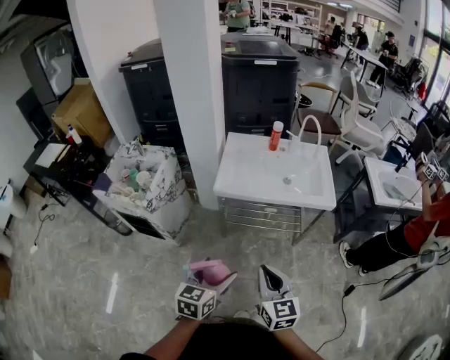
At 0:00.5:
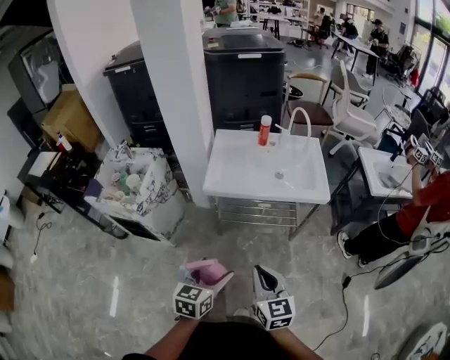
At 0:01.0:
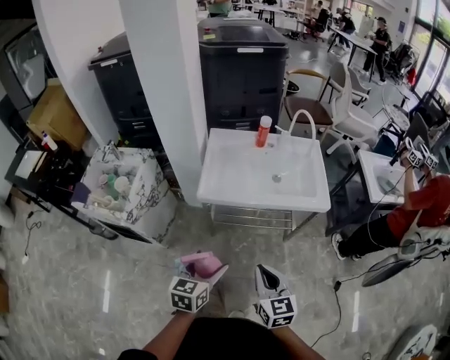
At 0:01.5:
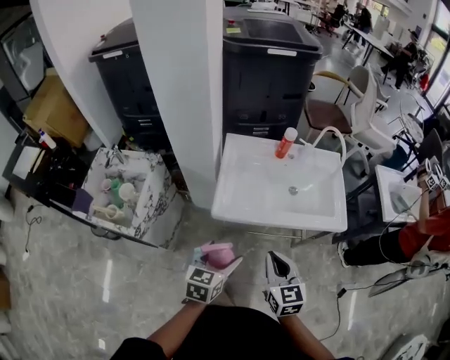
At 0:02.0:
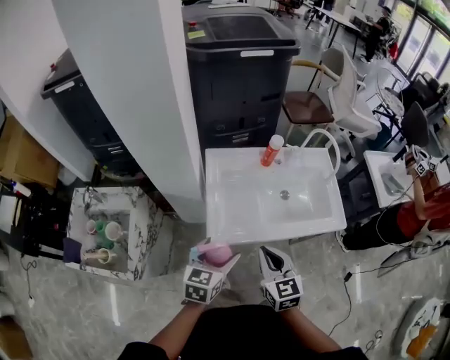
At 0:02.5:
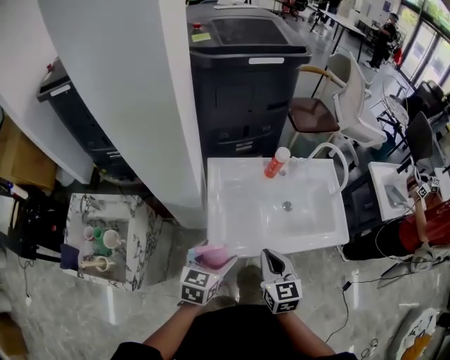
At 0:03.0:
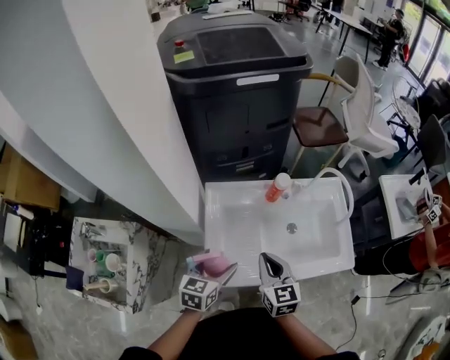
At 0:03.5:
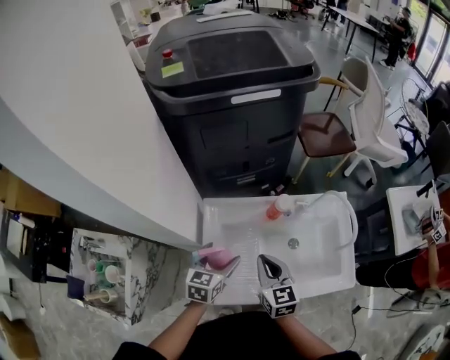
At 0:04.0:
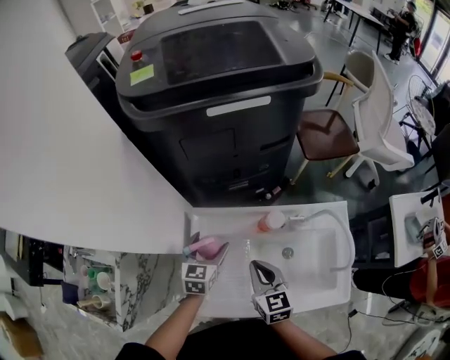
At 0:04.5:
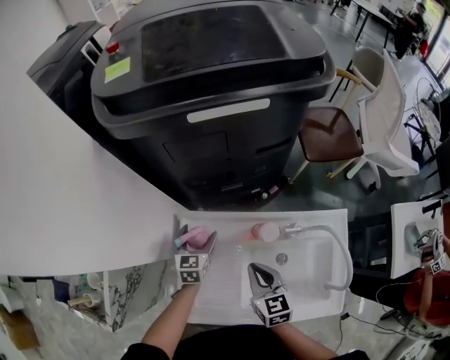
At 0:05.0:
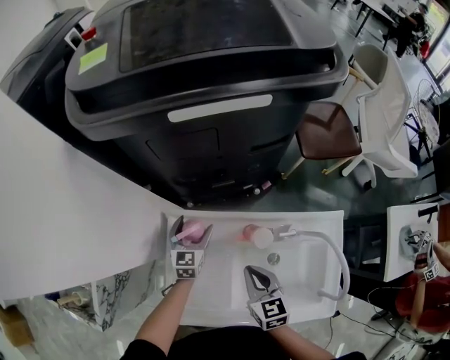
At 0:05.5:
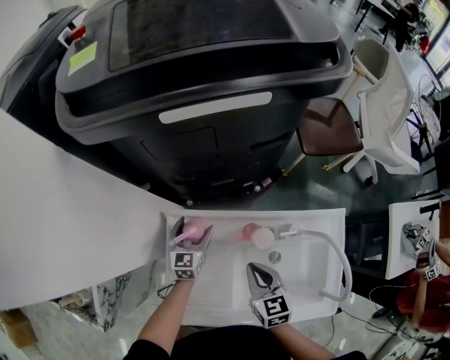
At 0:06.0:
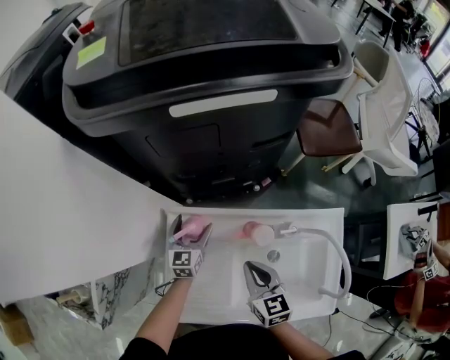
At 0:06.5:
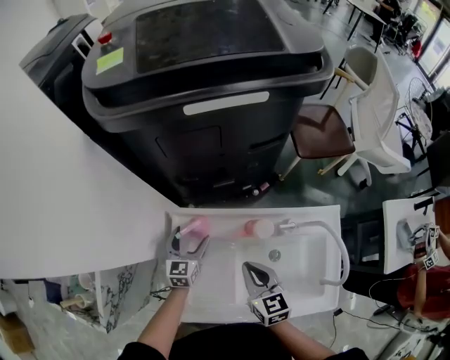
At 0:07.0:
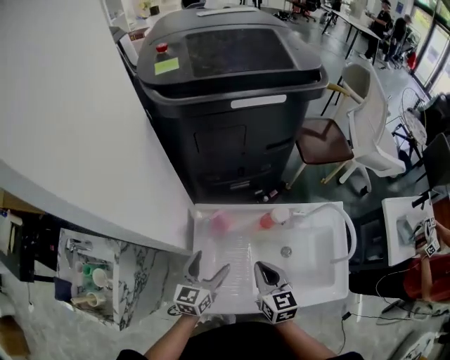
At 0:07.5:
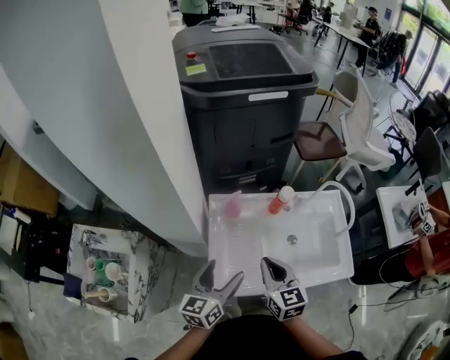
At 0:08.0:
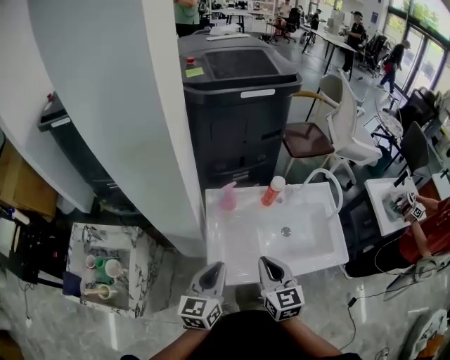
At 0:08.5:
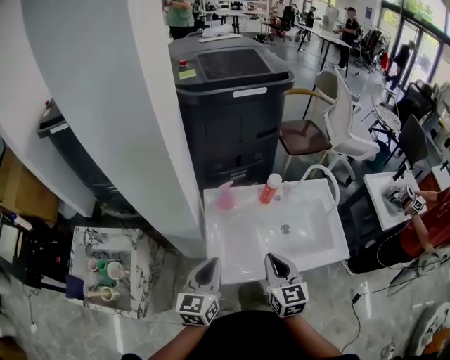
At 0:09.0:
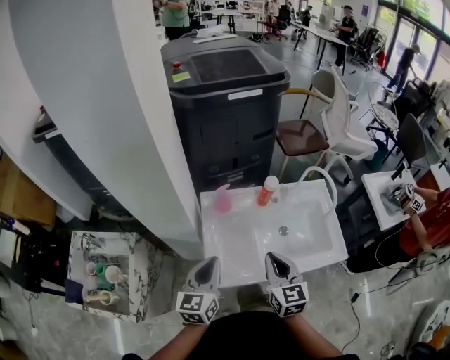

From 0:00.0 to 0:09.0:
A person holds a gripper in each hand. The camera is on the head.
From 0:00.0 to 0:02.0: The two grippers travel together, forward, approximately 40 cm.
From 0:02.0 to 0:04.5: Both grippers travel together forward, about 40 cm. The left gripper rotates roughly 20 degrees.
From 0:04.5 to 0:07.0: The left gripper moves backward and upward, some 20 cm, and rotates some 20 degrees, while the right gripper is displaced backward by approximately 5 cm.
From 0:07.0 to 0:09.0: The two grippers go about 20 cm backward and upward. The left gripper closes its fingers.

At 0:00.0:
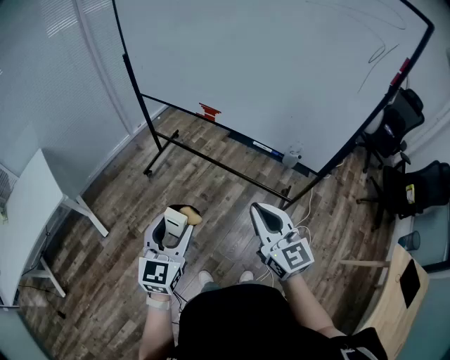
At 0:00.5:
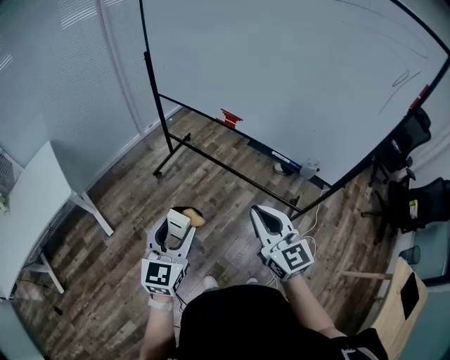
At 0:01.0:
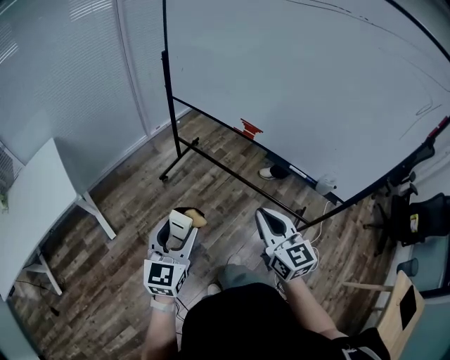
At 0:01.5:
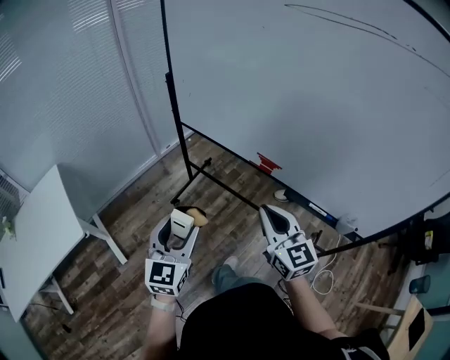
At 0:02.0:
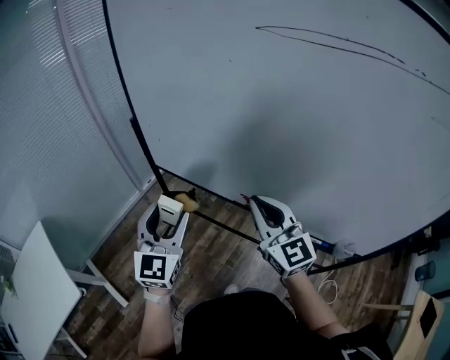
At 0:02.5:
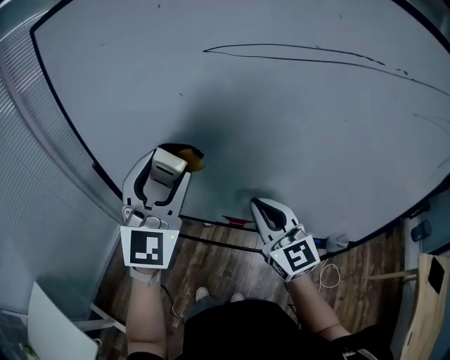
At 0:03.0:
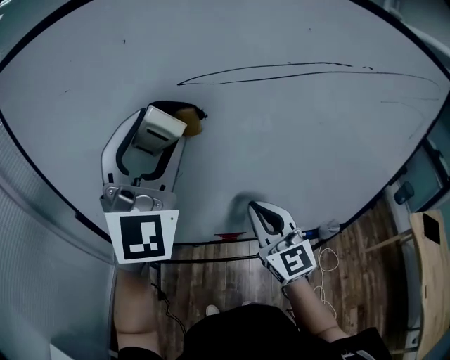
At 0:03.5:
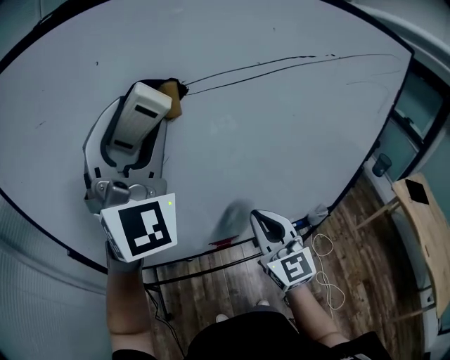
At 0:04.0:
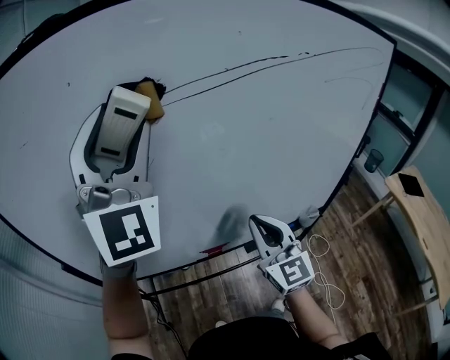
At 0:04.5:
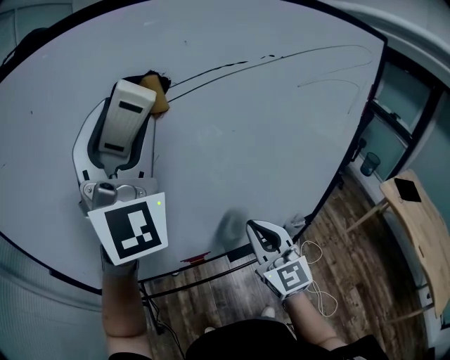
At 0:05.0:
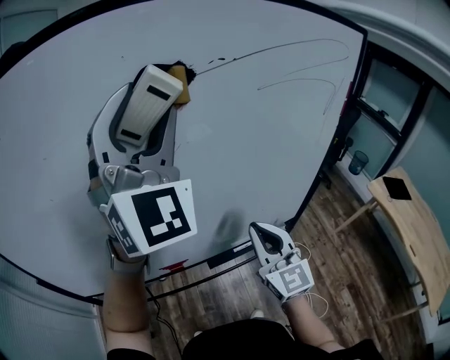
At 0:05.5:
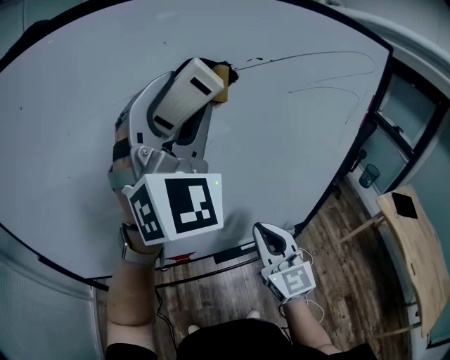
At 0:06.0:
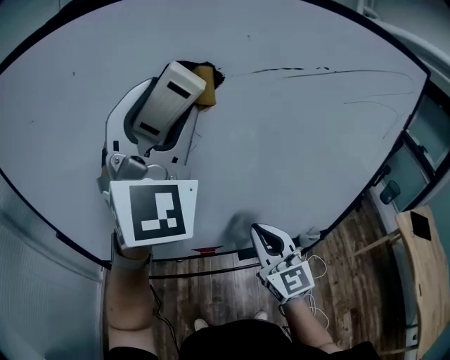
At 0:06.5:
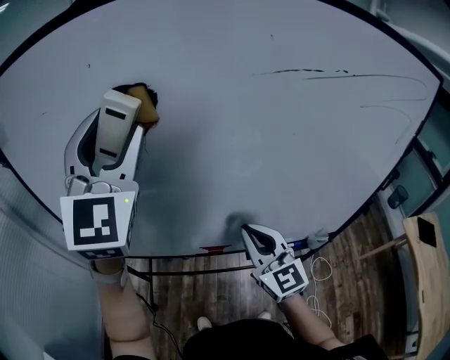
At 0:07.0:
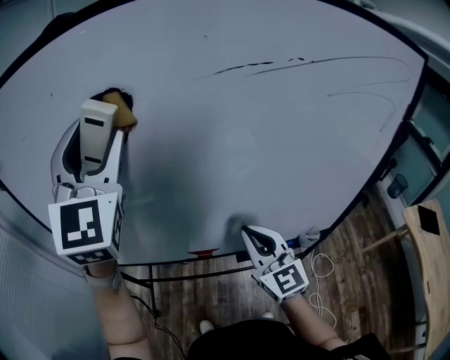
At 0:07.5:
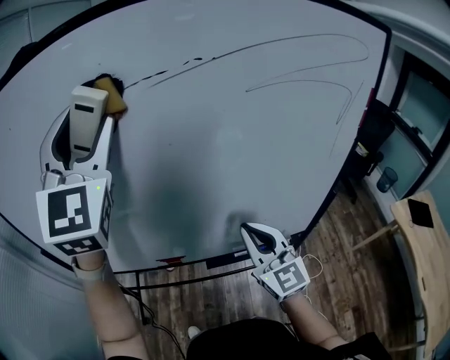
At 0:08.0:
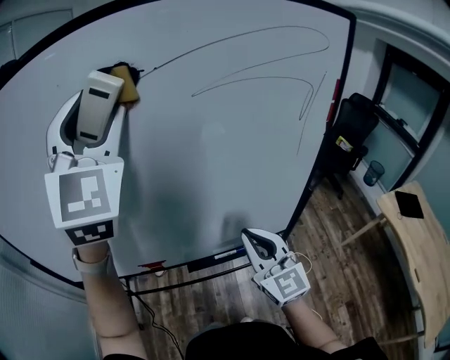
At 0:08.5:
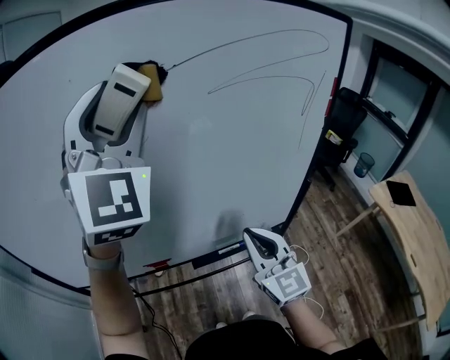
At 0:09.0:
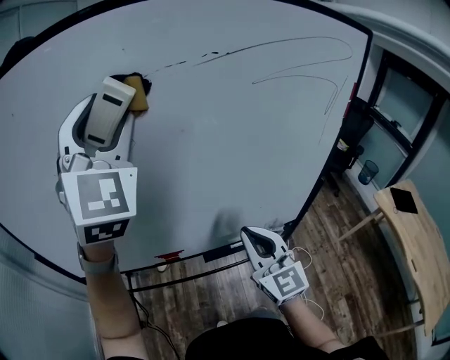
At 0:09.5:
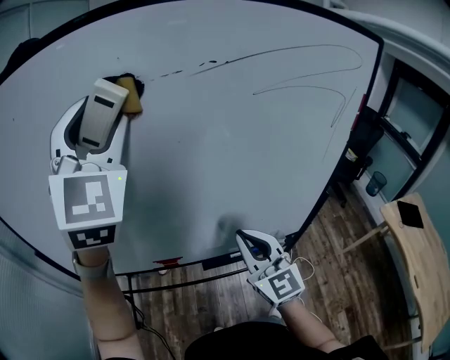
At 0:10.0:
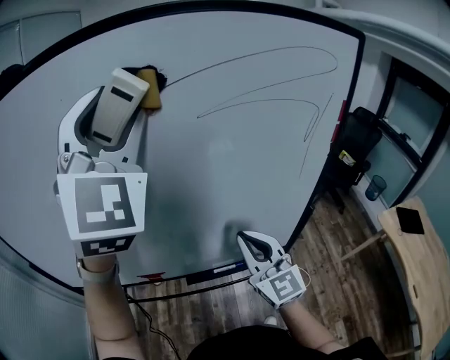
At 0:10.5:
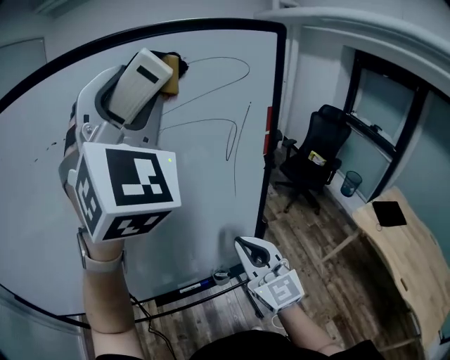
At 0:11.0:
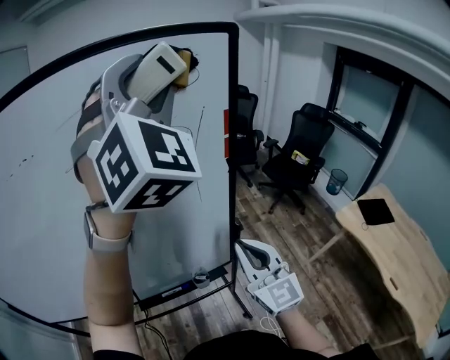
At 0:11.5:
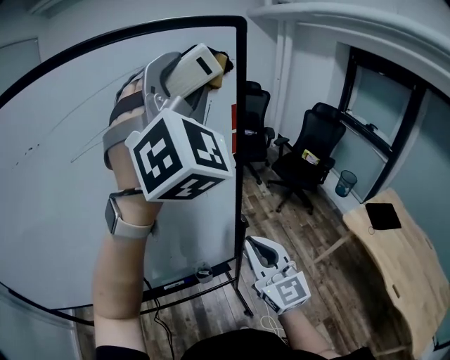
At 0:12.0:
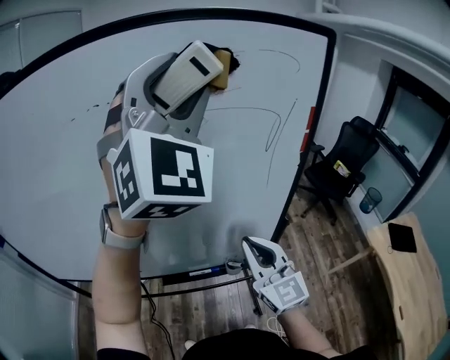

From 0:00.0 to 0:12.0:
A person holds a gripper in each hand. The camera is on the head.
From 0:00.0 to 0:02.0: Both grippers are carried forward, about 50 cm.
From 0:02.0 to 0:04.0: The left gripper heads upward, covering approximately 35 cm, and turns by approximately 50 degrees; the right gripper shifts by about 10 cm, and rotates about 50 degrees.
From 0:04.0 to 0:06.0: The left gripper is displaced to the right by roughly 5 cm; the right gripper goes to the right and returns, roughly 15 cm each way.
From 0:06.0 to 0:08.0: Both grippers travel together to the right, about 20 cm.
From 0:08.0 to 0:10.0: The left gripper goes to the left and returns, about 10 cm each way. The right gripper moves approximately 10 cm to the left and comes back.
From 0:10.0 to 0:12.0: The right gripper moves to the right, approximately 10 cm; the left gripper shifts some 20 cm to the right.

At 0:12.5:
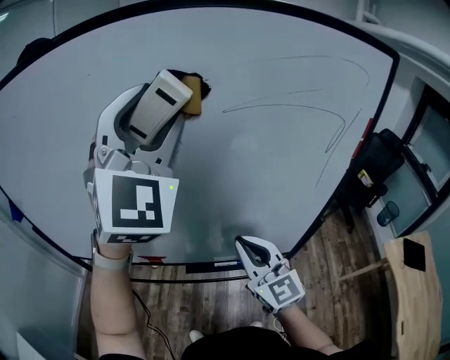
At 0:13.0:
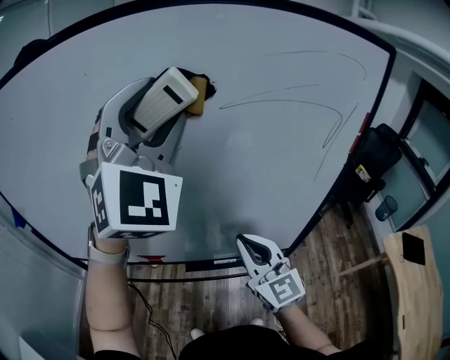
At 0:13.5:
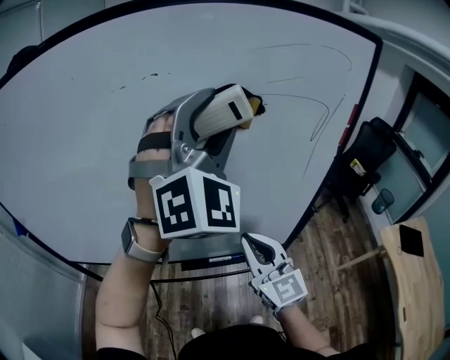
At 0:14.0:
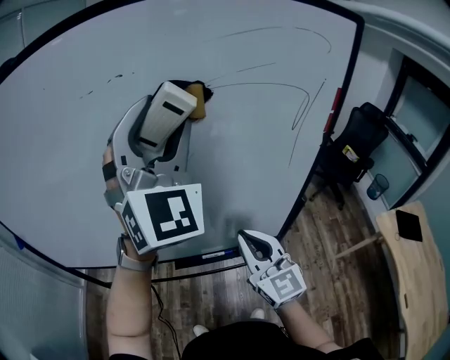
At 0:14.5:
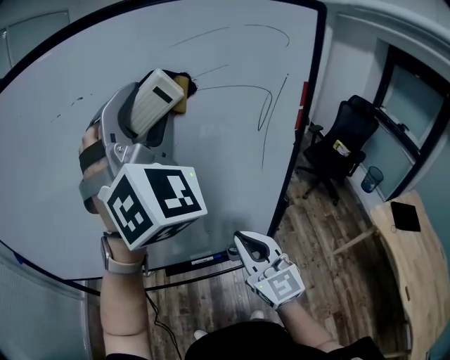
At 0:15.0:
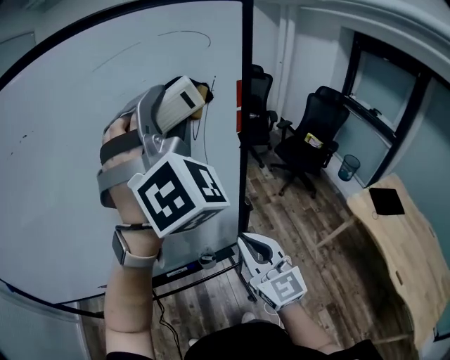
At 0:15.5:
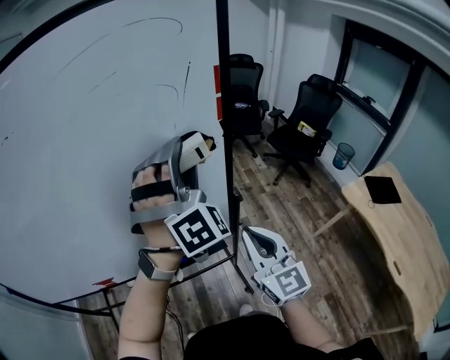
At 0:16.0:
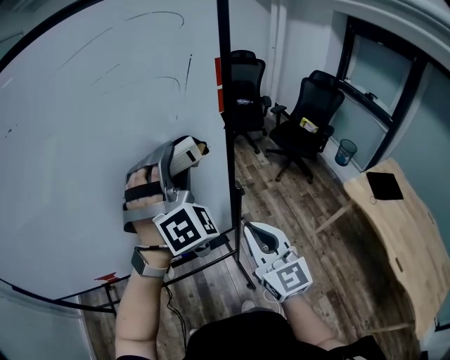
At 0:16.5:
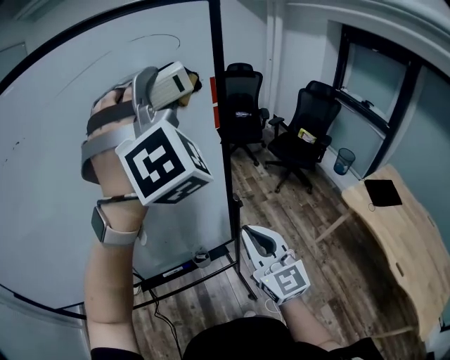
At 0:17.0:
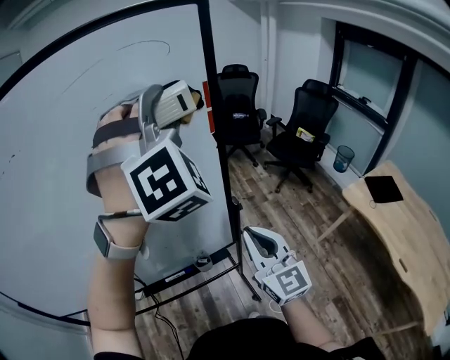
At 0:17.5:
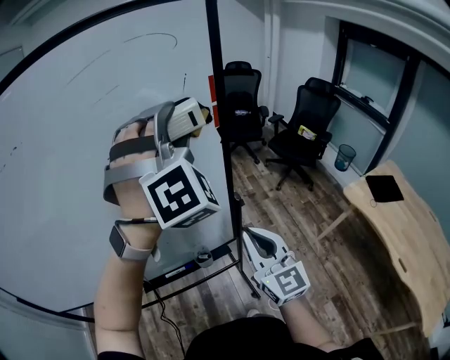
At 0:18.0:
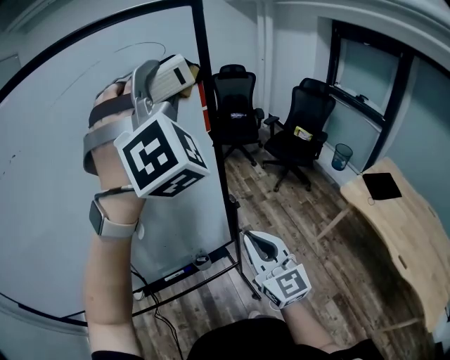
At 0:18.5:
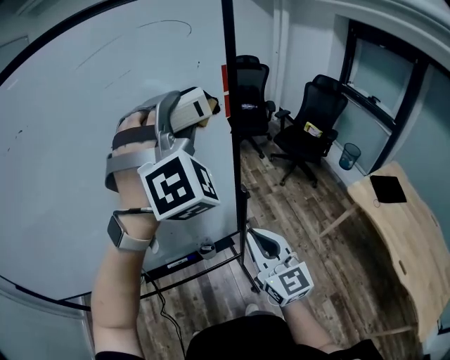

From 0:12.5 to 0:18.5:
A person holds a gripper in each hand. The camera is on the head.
From 0:12.5 to 0:14.5: The left gripper swings left and right, about 15 cm each way, with 2 reversals. Meanwhile the right gripper shifts approximately 10 cm to the right.
From 0:14.5 to 0:16.5: The grippers both shift to the right by about 20 cm.
From 0:16.5 to 0:18.5: The left gripper goes up and down, roughly 10 cm each way, reversing 2 times.
